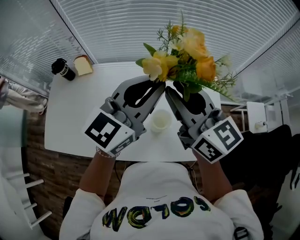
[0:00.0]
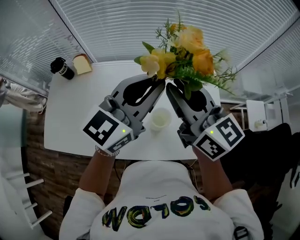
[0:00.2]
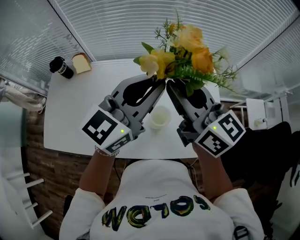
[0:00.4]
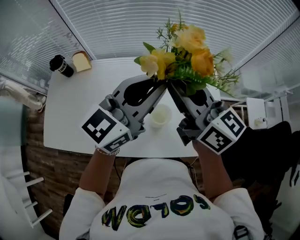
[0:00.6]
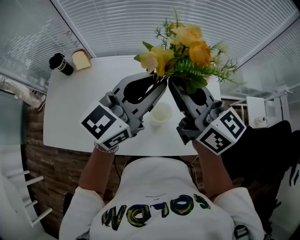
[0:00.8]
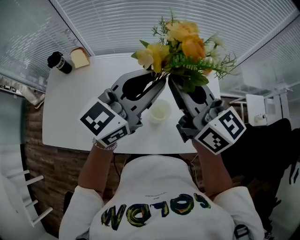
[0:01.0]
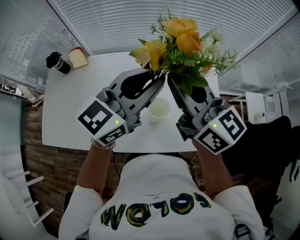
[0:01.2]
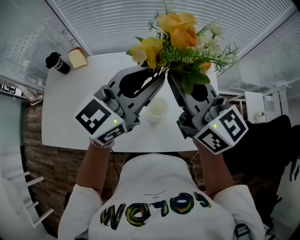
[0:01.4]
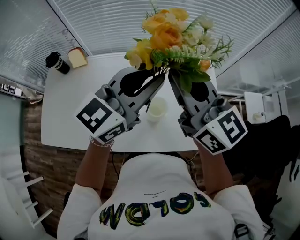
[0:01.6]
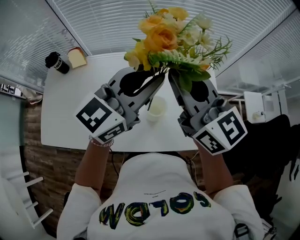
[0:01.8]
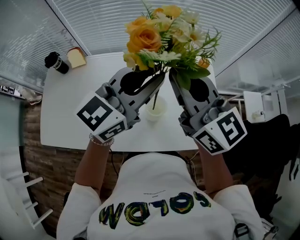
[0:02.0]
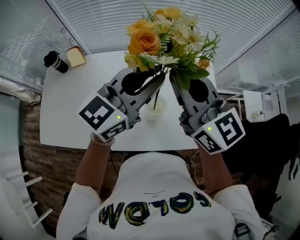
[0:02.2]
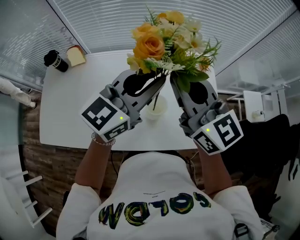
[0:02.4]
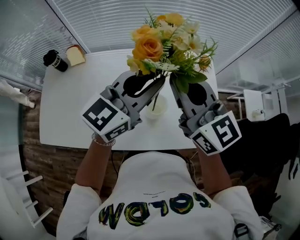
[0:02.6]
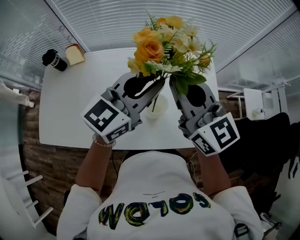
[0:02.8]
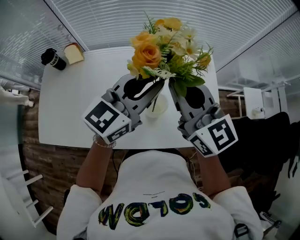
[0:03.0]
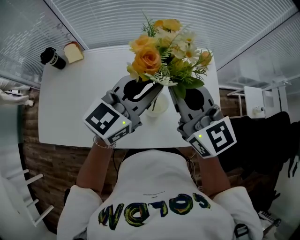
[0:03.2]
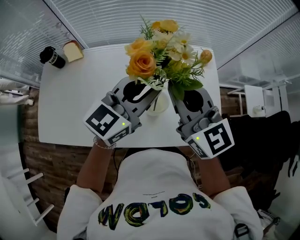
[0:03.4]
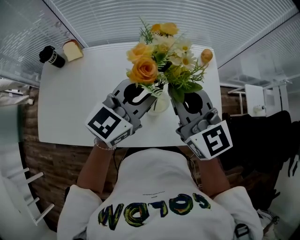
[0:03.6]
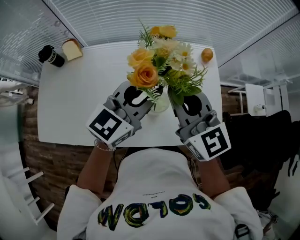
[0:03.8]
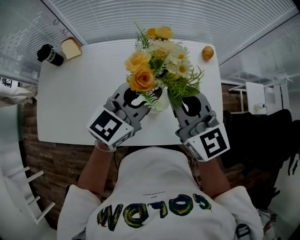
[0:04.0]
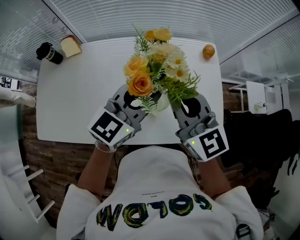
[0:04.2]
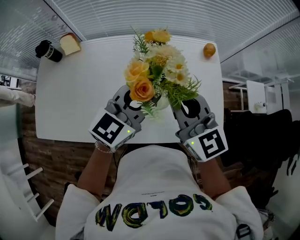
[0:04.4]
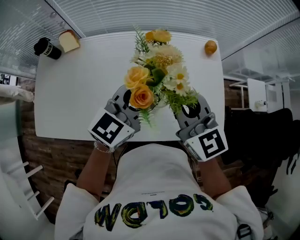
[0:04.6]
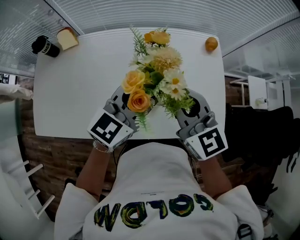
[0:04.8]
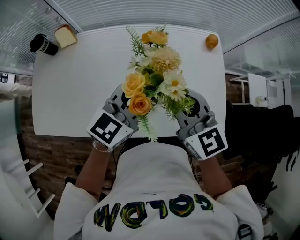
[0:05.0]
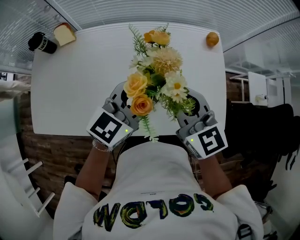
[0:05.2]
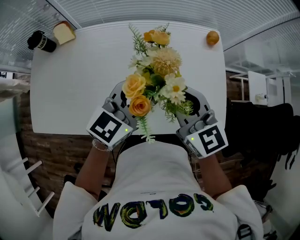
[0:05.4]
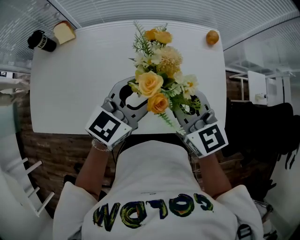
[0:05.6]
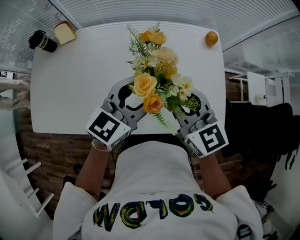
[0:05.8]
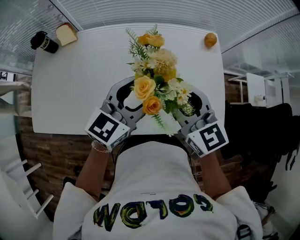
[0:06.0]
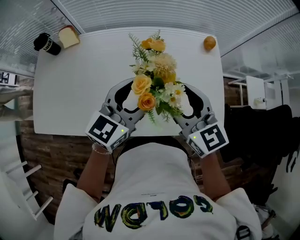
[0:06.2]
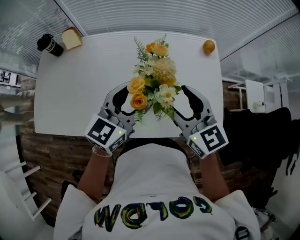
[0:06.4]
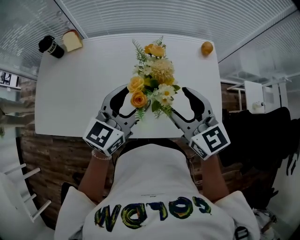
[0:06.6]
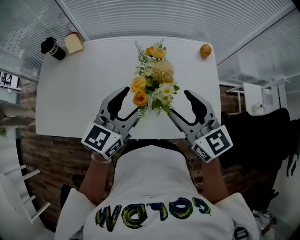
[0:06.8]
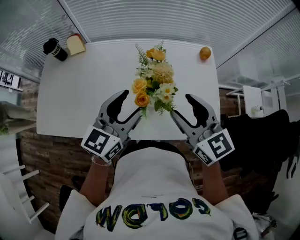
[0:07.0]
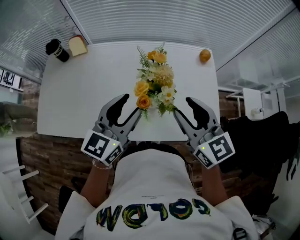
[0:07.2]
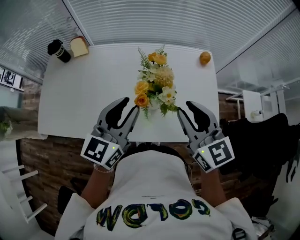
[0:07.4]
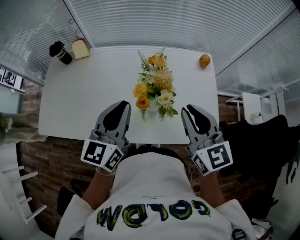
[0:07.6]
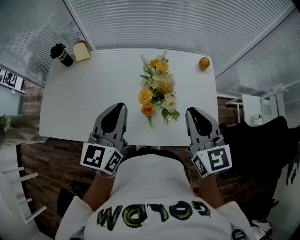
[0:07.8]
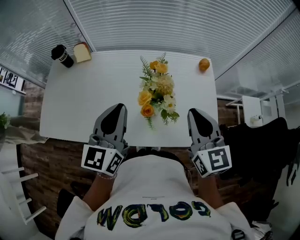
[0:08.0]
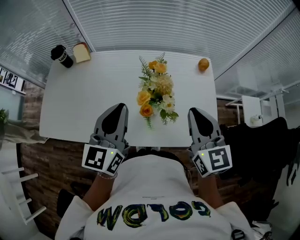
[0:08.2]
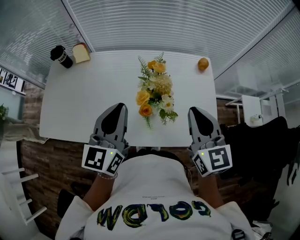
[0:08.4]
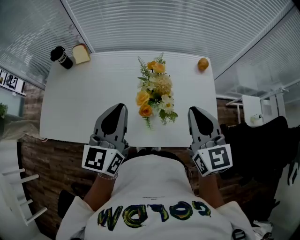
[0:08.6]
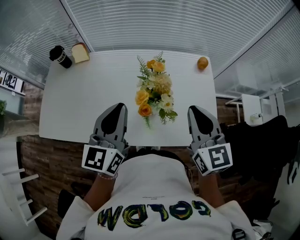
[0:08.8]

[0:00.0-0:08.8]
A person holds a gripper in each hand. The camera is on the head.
0:00.0 to 0:01.4: There are only small adjustments of the grippers.
0:01.4 to 0:03.0: The left gripper changes place by some 5 cm.
0:03.0 to 0:04.4: The grippers both shift downward by roughly 5 cm.
0:04.4 to 0:05.8: The right gripper is displaced downward by roughly 5 cm. Meanwhile the left gripper opens.
0:05.8 to 0:07.4: The right gripper shifts approximately 5 cm upward, and opens, then closes once more; the left gripper heads to the left and upward, covering some 10 cm, and rotates about 20 degrees.
0:07.4 to 0:08.8: The right gripper closes its fingers, while the left gripper closes.

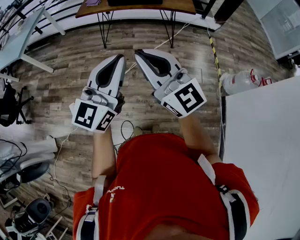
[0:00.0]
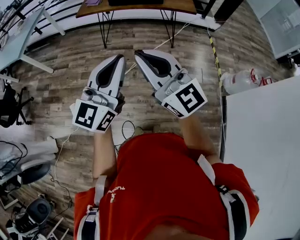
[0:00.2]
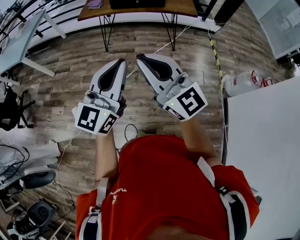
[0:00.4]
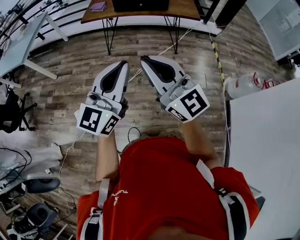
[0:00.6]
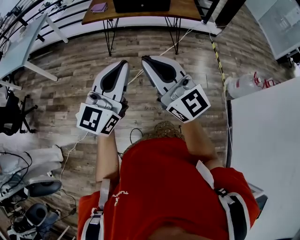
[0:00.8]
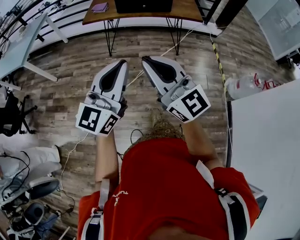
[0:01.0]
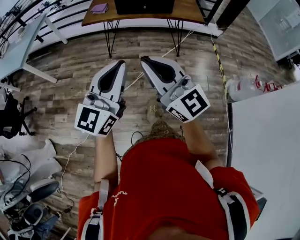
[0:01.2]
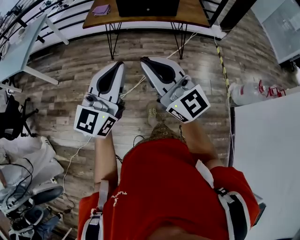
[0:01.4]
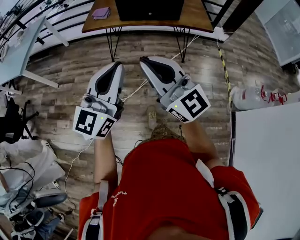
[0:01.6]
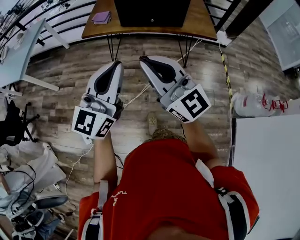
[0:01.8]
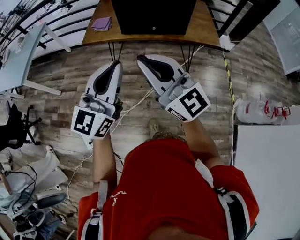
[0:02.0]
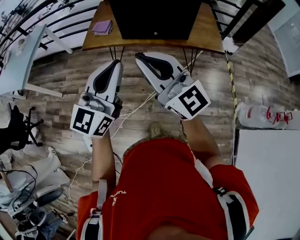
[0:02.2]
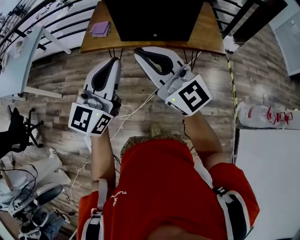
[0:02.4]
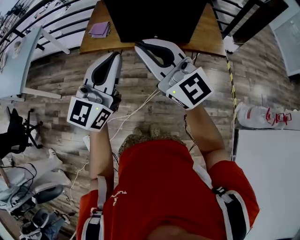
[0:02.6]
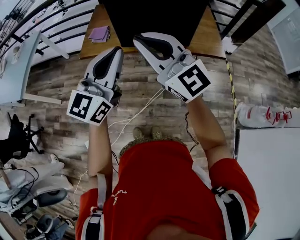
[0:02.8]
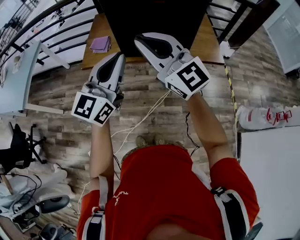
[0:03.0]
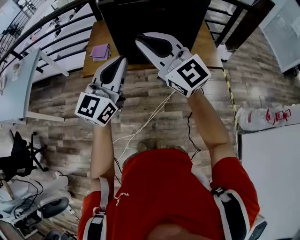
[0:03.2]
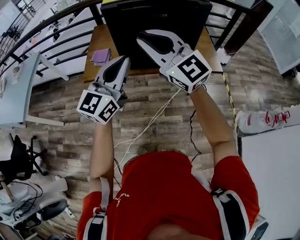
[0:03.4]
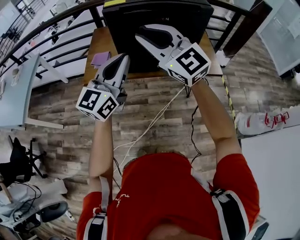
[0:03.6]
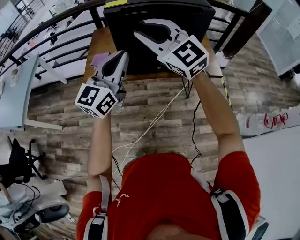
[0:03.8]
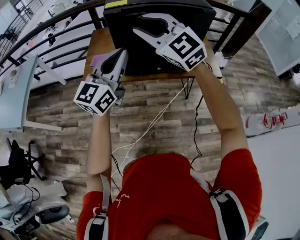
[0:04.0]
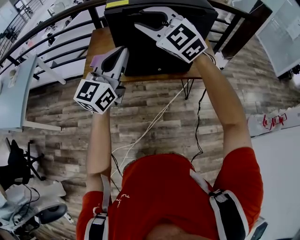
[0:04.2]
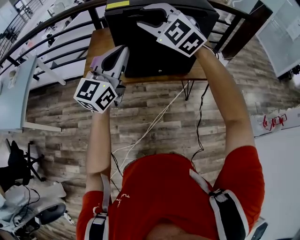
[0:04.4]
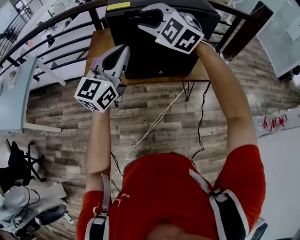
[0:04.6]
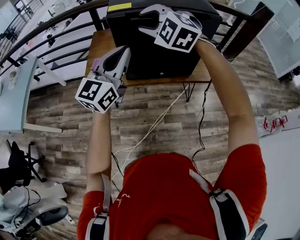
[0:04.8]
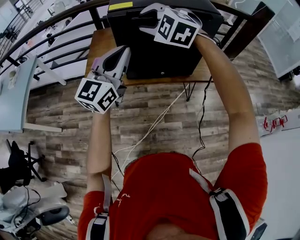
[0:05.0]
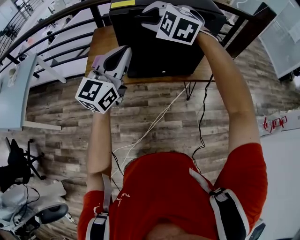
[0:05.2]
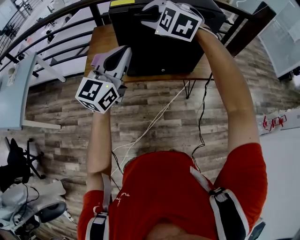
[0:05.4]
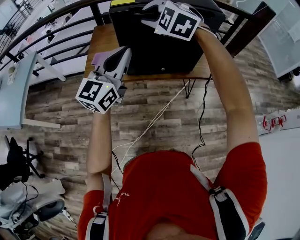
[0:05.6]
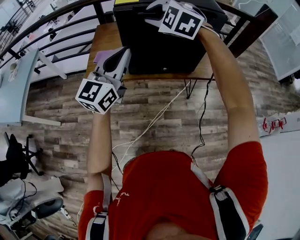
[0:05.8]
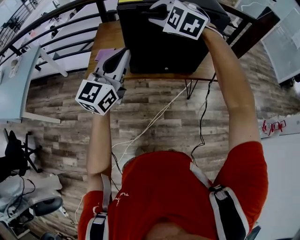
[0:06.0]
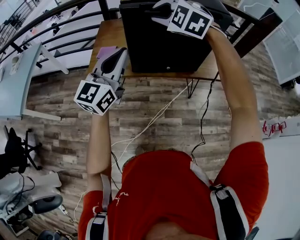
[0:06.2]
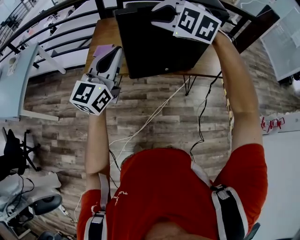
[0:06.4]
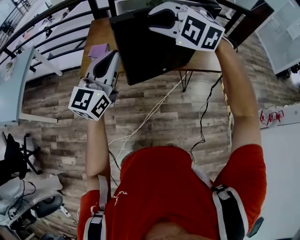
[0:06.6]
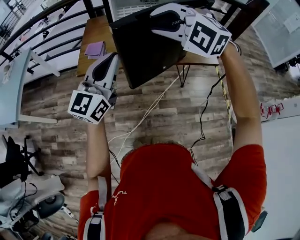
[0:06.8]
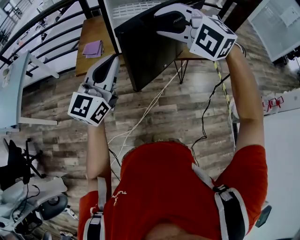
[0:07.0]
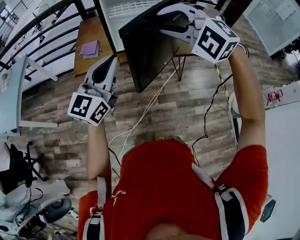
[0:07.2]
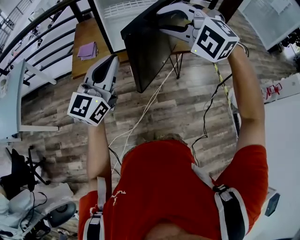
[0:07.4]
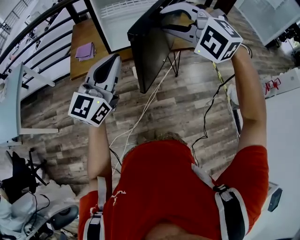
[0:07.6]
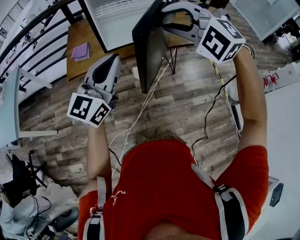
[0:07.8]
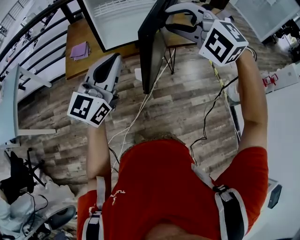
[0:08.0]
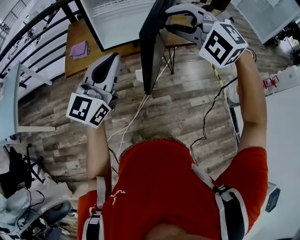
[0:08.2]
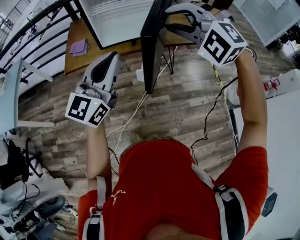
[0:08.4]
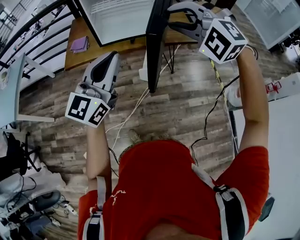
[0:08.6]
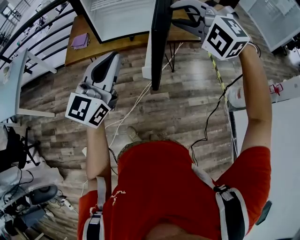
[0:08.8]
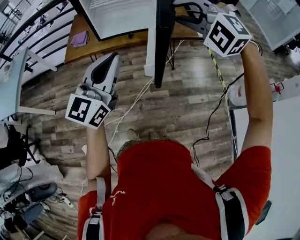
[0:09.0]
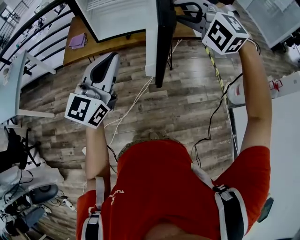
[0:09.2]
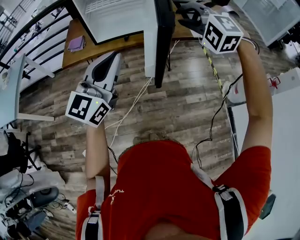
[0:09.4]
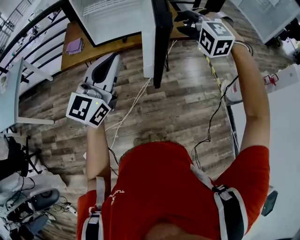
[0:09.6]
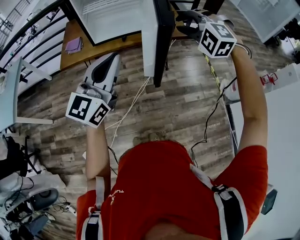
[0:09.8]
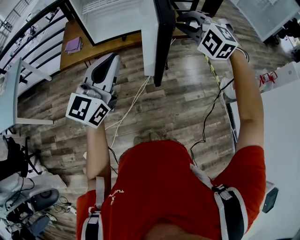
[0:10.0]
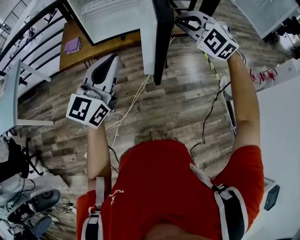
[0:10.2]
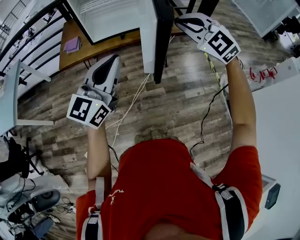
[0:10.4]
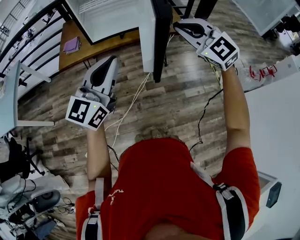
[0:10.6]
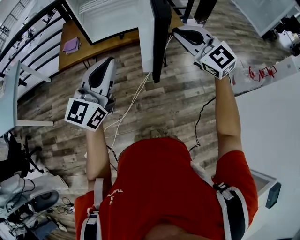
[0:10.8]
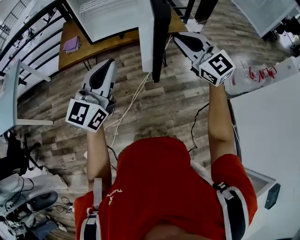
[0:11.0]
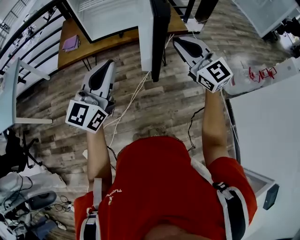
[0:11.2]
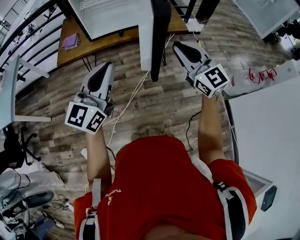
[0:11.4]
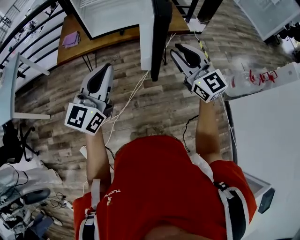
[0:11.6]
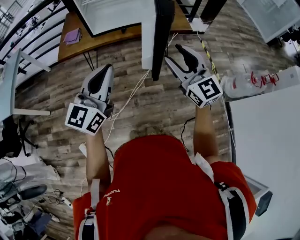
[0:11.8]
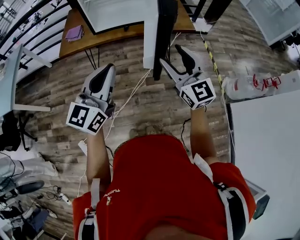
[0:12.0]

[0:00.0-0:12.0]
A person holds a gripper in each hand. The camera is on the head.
0:00.0 to 0:01.6: The right gripper goes approximately 15 cm forward; the left gripper goes approximately 20 cm forward and to the left.
0:01.6 to 0:03.0: Both grippers travel together forward, approximately 30 cm.
0:03.0 to 0:04.4: The right gripper moves forward, about 20 cm, rotates about 40 degrees, and opens. Meanwhile the left gripper is displaced forward by some 10 cm.
0:04.4 to 0:06.0: The right gripper swivels approximately 20 degrees.
0:06.0 to 0:07.6: The left gripper shifts about 15 cm backward, while the right gripper heads backward and to the right, covering about 25 cm.
0:07.6 to 0:09.0: Both grippers move to the right and backward, some 20 cm.
0:09.0 to 0:10.4: The right gripper changes place by approximately 5 cm, rotates roughly 30 degrees, and closes.
0:10.4 to 0:12.0: The right gripper heads downward and backward, covering some 10 cm, swivels some 40 degrees, and opens its fingers; the left gripper heads downward, covering some 5 cm.

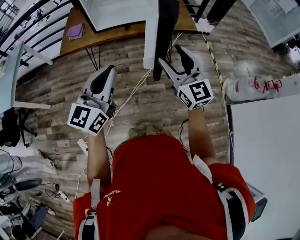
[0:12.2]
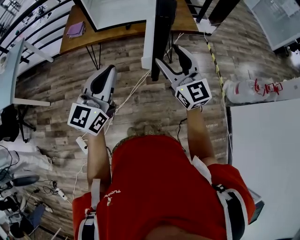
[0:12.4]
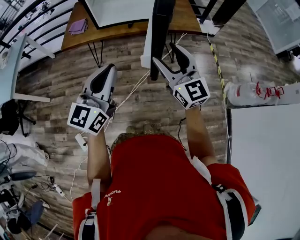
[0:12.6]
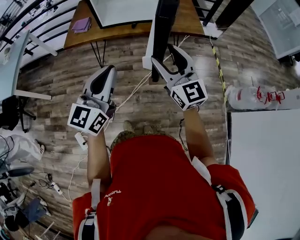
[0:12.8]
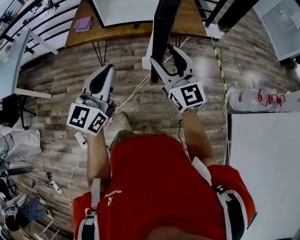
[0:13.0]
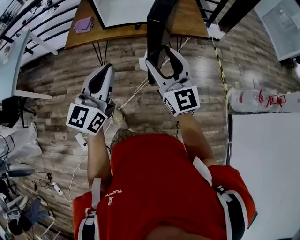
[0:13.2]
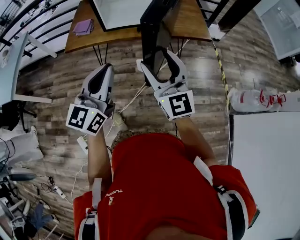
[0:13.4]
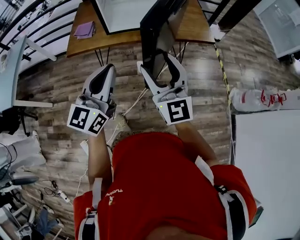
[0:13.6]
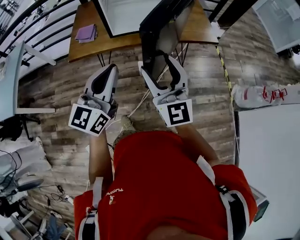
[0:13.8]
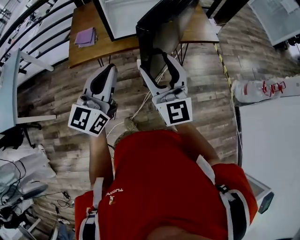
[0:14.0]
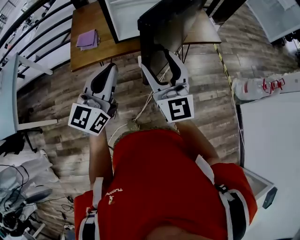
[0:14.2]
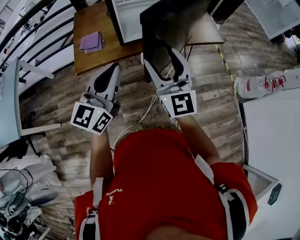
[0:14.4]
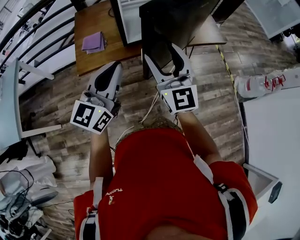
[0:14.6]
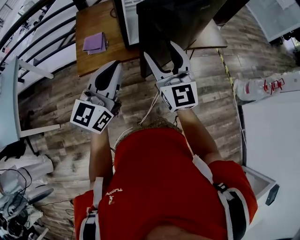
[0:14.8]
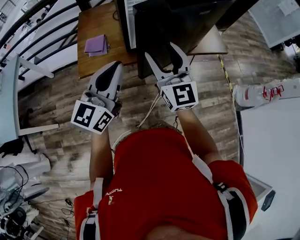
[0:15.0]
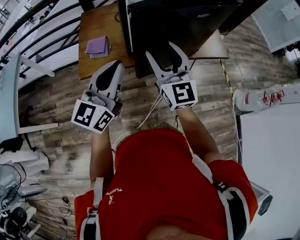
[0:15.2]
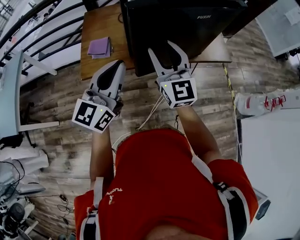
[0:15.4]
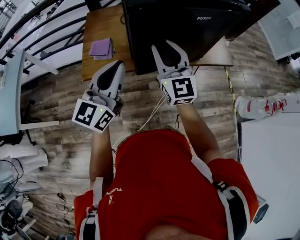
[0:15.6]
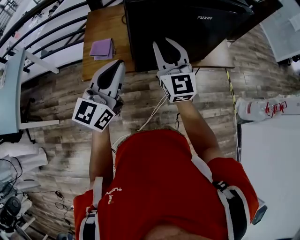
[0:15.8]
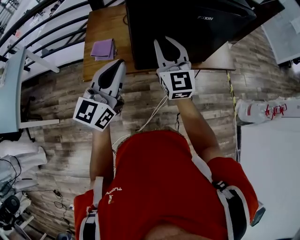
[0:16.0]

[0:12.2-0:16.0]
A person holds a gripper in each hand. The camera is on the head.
0:12.2 to 0:13.4: The right gripper goes about 10 cm to the left. The left gripper is displaced forward and to the left by some 10 cm.
0:13.4 to 0:14.8: Both grippers travel together to the left and forward, some 25 cm.
0:14.8 to 0:16.0: The left gripper travels forward by approximately 5 cm. The right gripper shifts approximately 10 cm forward, and closes.
